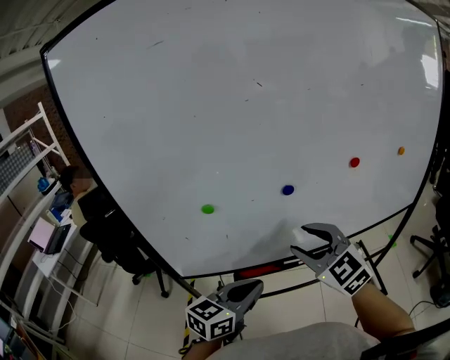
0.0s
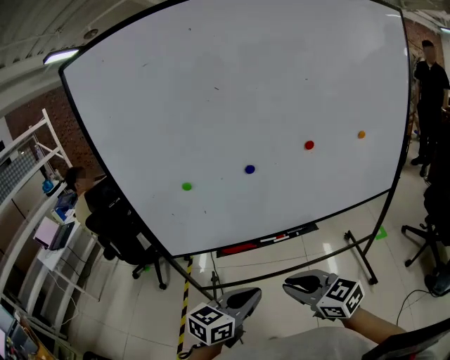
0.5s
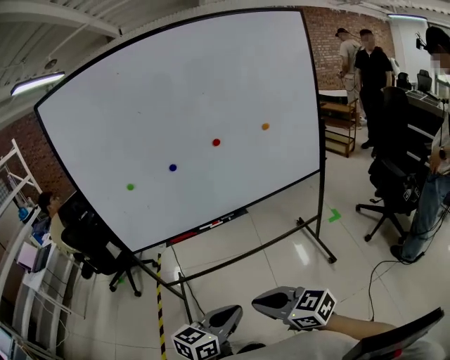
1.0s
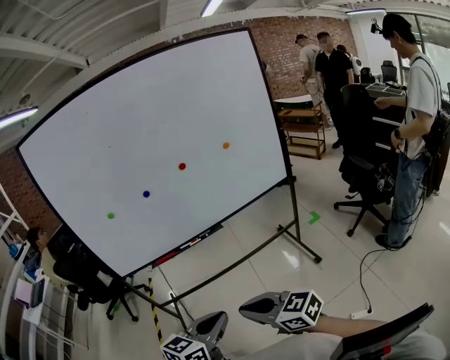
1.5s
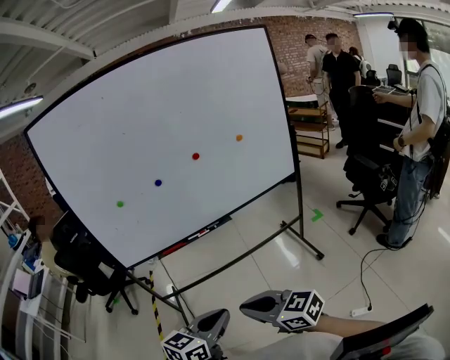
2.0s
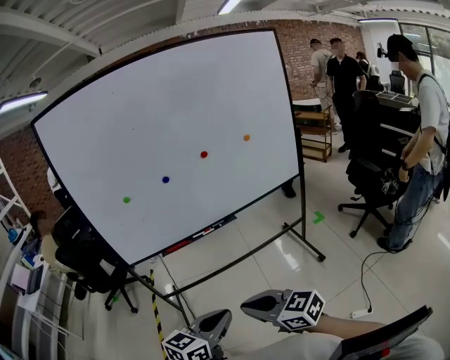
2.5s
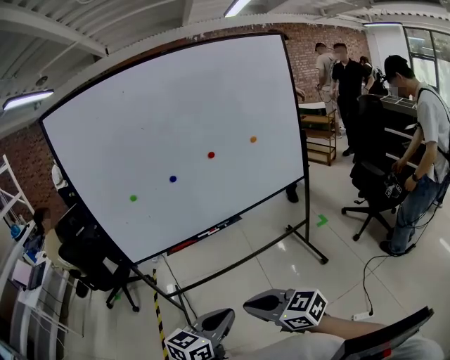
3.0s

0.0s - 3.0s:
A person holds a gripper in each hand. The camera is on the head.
0.0s - 1.5s: Both grippers are carried backward and to the right, some 40 cm. The right gripper turns by about 40 degrees, and closes.
1.5s - 3.0s: Both grippers travel together to the left, some 5 cm.

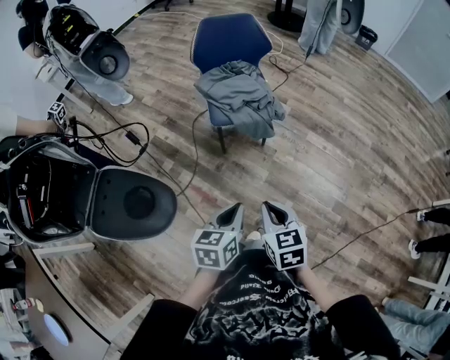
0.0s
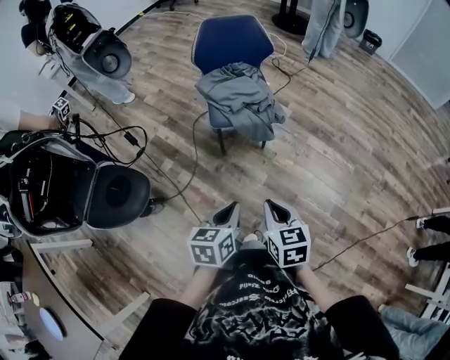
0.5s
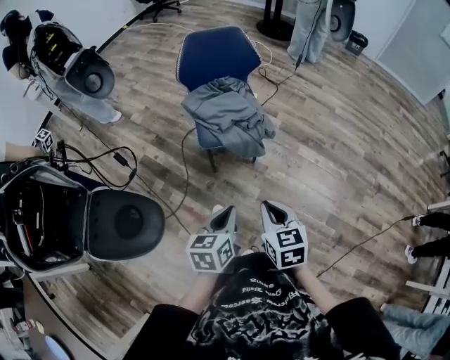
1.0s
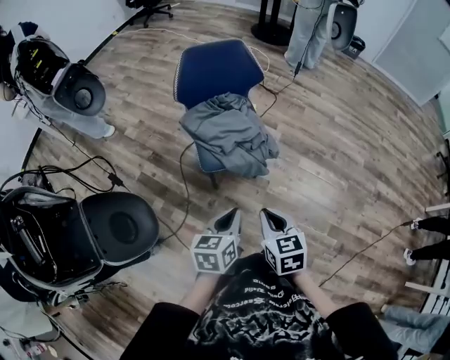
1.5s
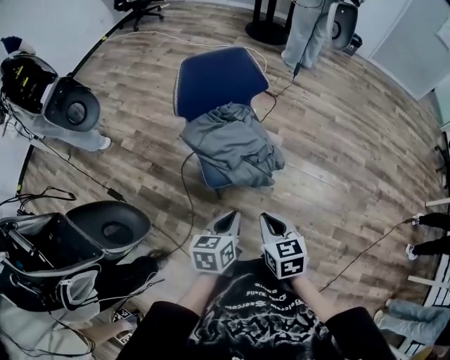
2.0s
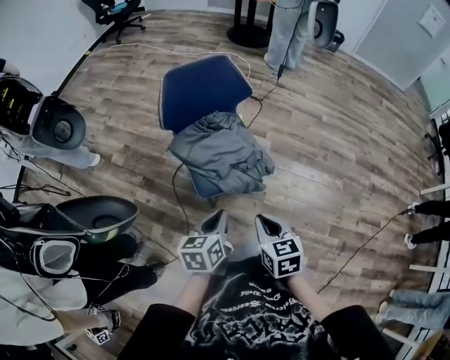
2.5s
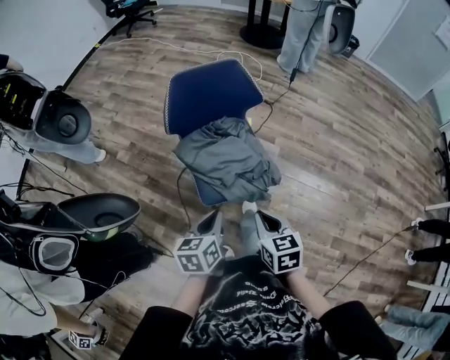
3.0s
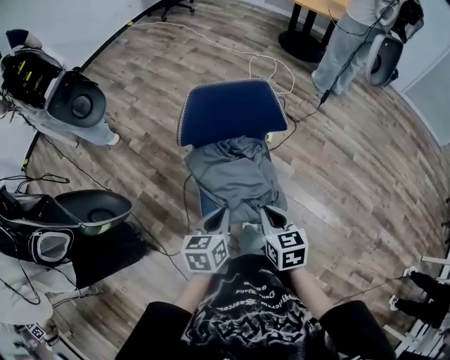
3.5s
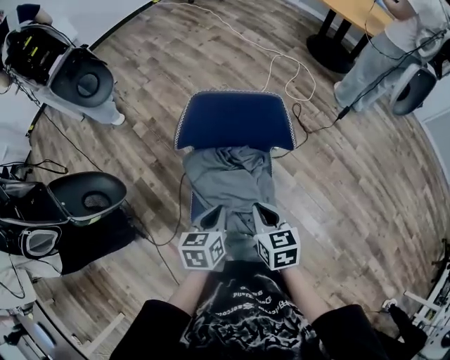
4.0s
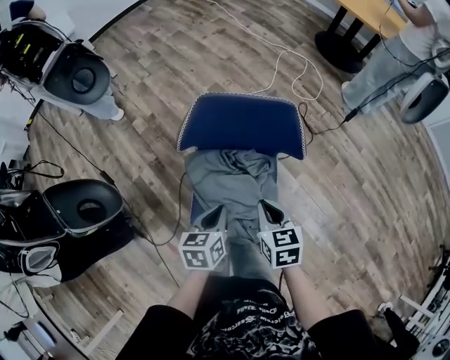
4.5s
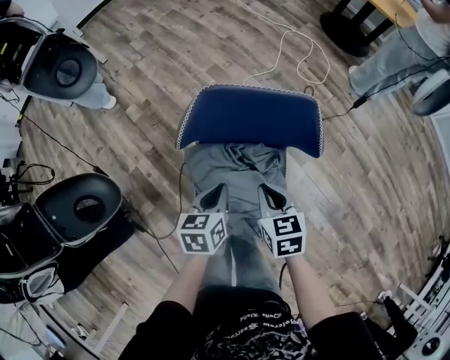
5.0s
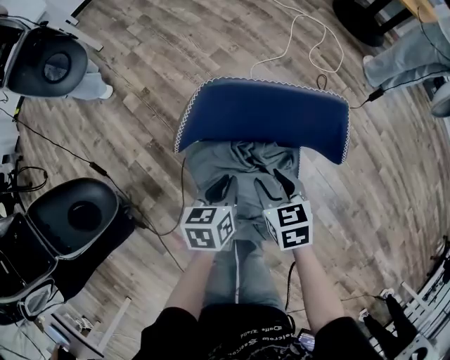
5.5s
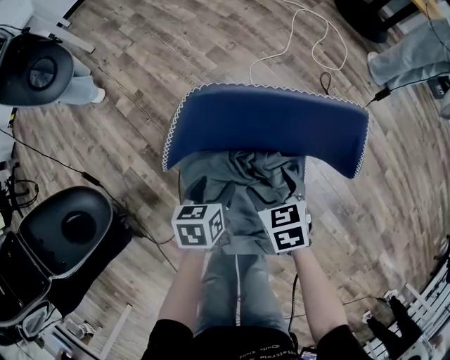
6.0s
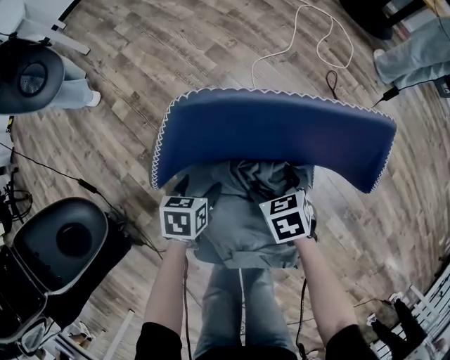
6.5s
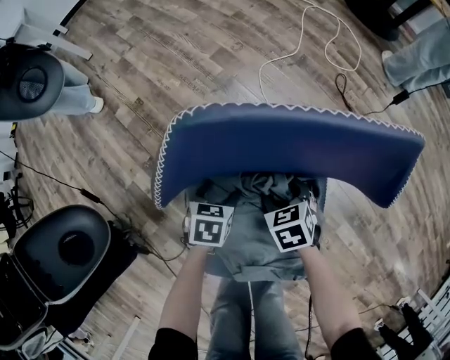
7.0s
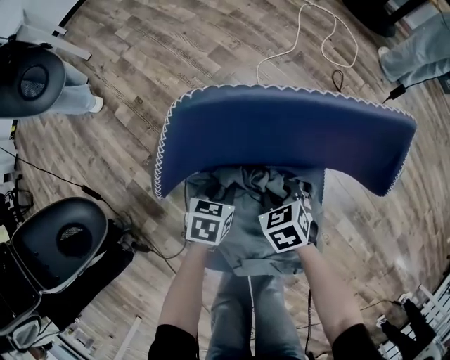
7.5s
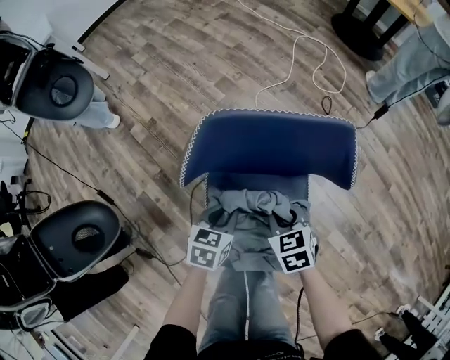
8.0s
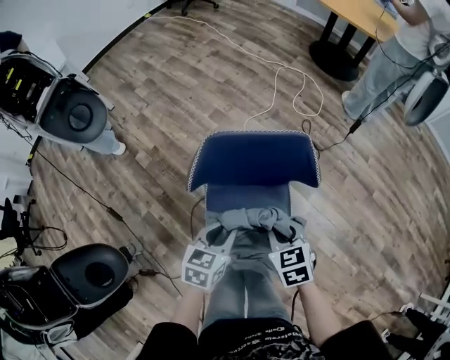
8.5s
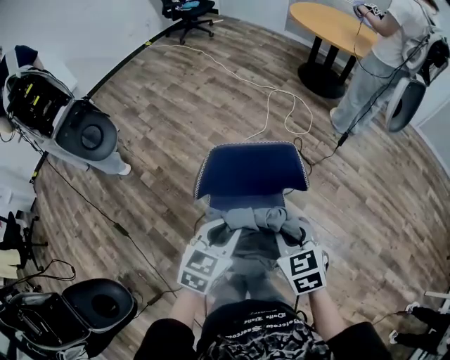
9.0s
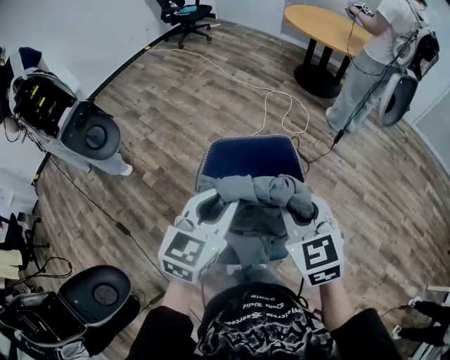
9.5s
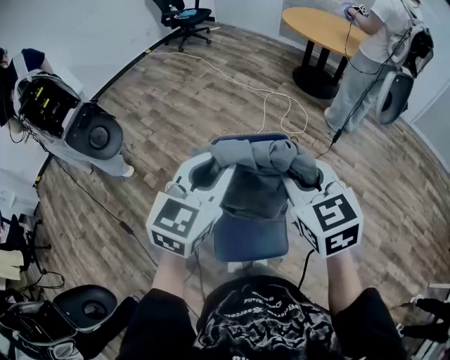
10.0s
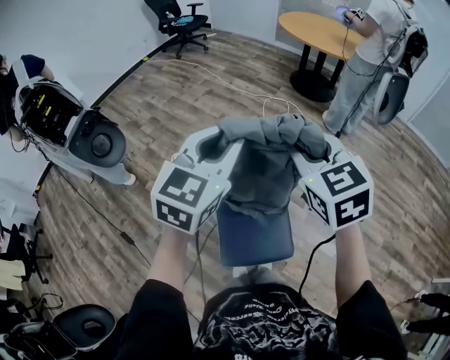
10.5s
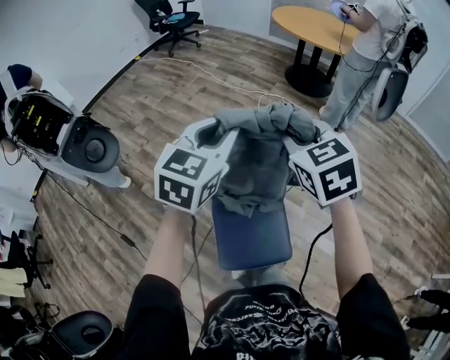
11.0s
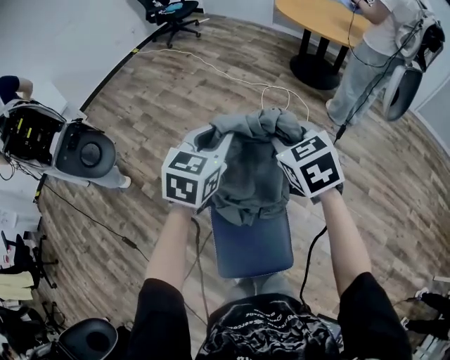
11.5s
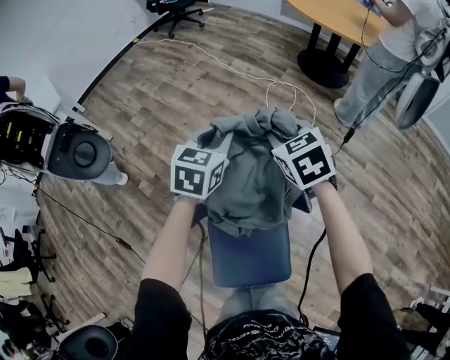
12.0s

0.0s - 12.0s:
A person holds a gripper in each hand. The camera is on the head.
0.0s - 2.0s: Both grippers travel together forward, about 30 cm.
2.0s - 4.0s: The left gripper ends up approximately 30 cm from where it was, and turns by some 30 degrees. The right gripper moves roughly 30 cm, and rotates roughly 20 degrees.
4.0s - 6.0s: The two grippers go some 25 cm downward and forward. The left gripper opens. Meanwhile the right gripper opens its fingers.
6.0s - 8.0s: The right gripper goes downward and returns, some 10 cm each way, and closes its fingers, while the left gripper travels downward and back again, approximately 10 cm each way, turns by some 20 degrees, and closes up.
8.0s - 10.0s: The grippers both shift upward by about 50 cm. The right gripper changes its angle by roughly 30 degrees. Meanwhile the left gripper tips its fingers upward by roughly 40 degrees.
10.0s - 12.0s: Both grippers move forward and downward, approximately 35 cm.

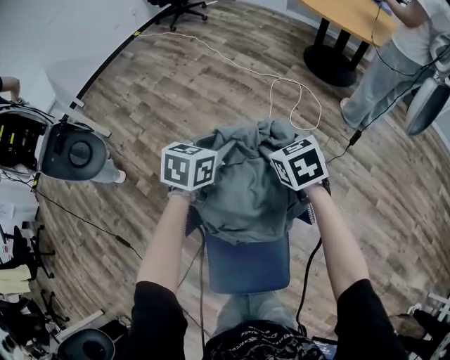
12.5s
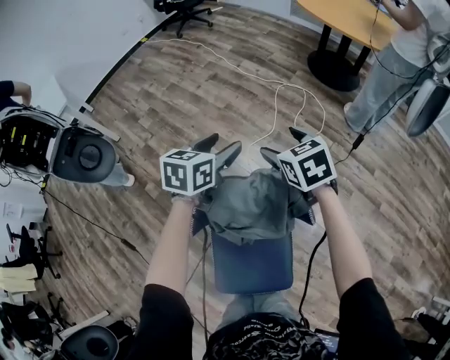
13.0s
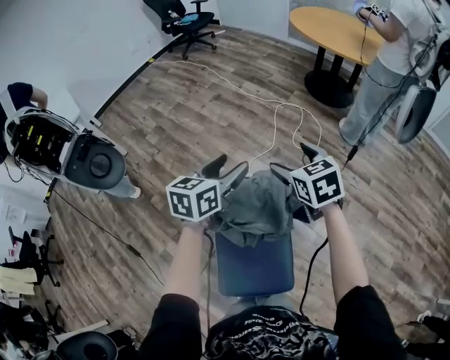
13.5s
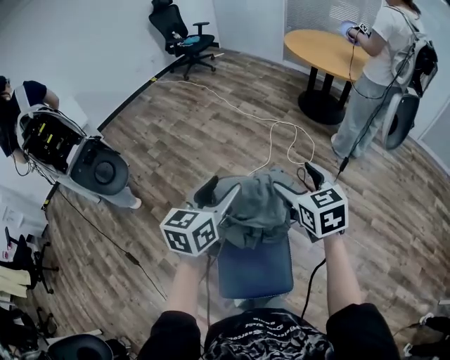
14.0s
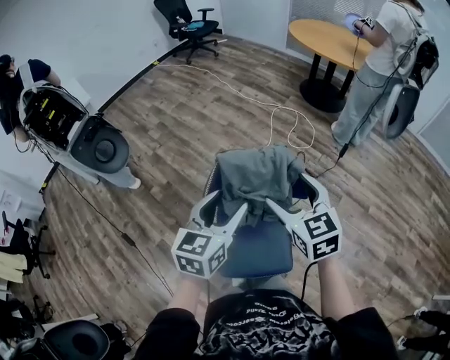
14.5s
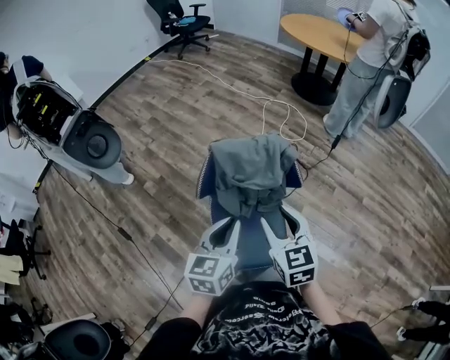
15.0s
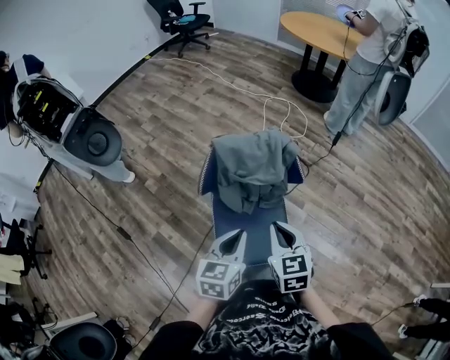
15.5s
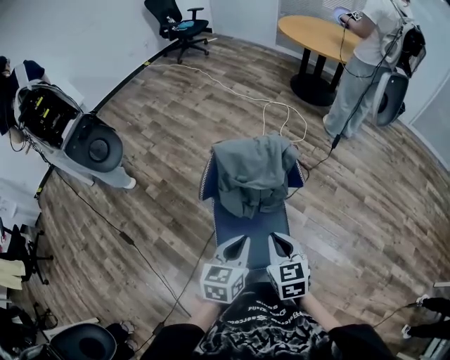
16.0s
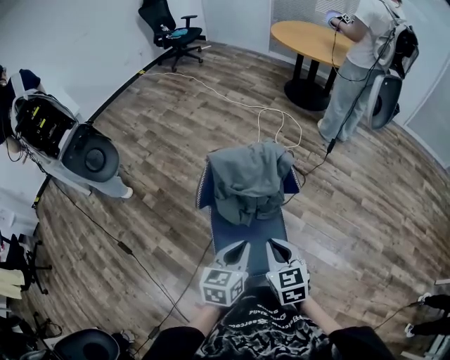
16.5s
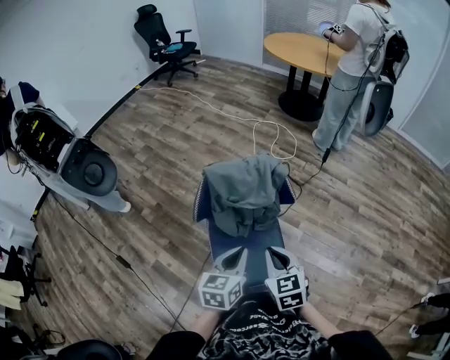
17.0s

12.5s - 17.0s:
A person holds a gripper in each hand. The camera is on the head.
12.5s - 14.5s: Both grippers move backward and upward, approximately 35 cm. The left gripper swivels roughly 20 degrees, and opens up; the right gripper swivels roughly 20 degrees.
14.5s - 17.0s: The right gripper travels backward and downward by about 20 cm, and closes its fingers; the left gripper moves downward, backward and to the right, approximately 15 cm, and closes up.

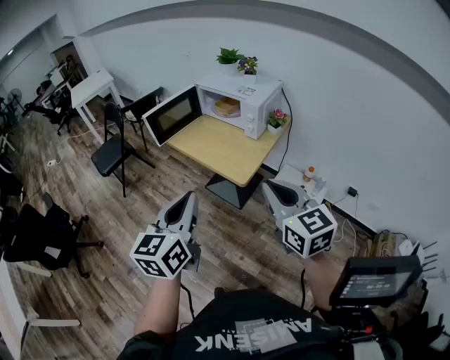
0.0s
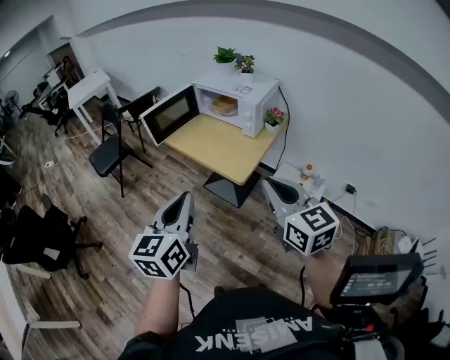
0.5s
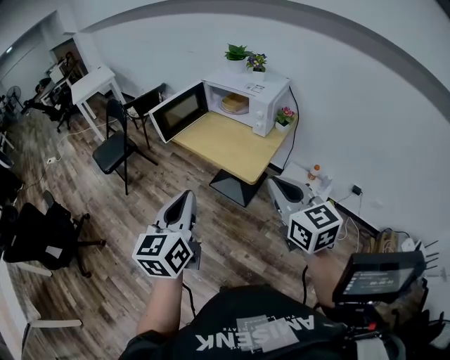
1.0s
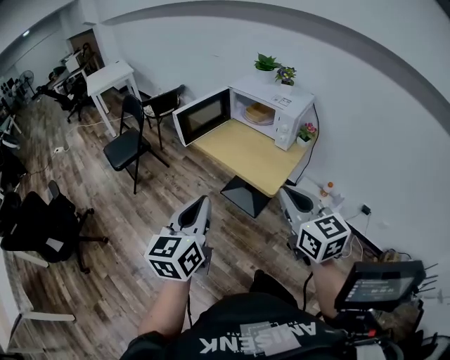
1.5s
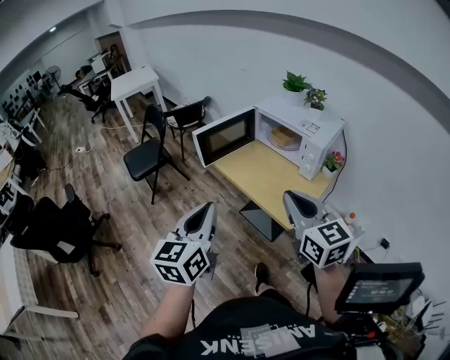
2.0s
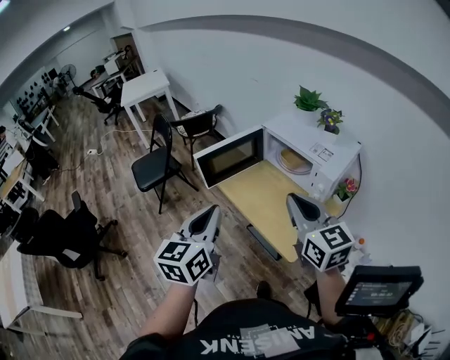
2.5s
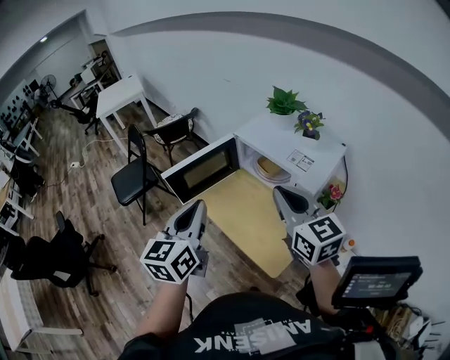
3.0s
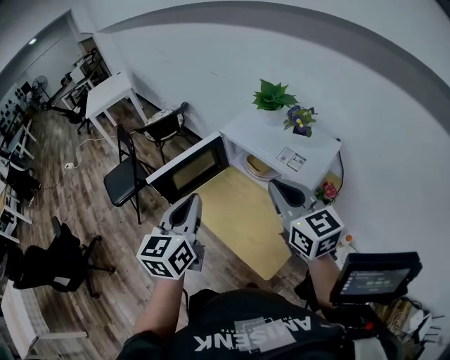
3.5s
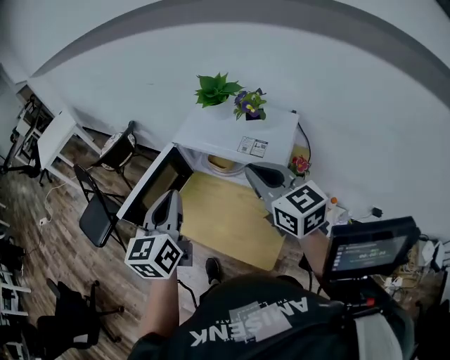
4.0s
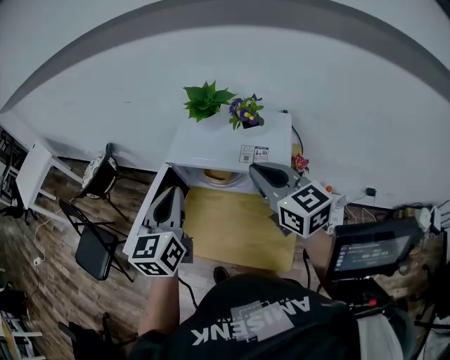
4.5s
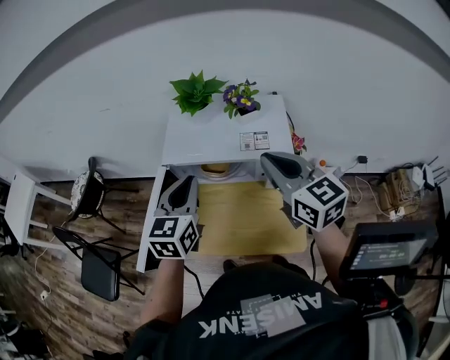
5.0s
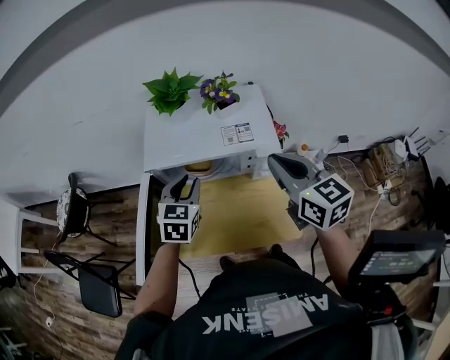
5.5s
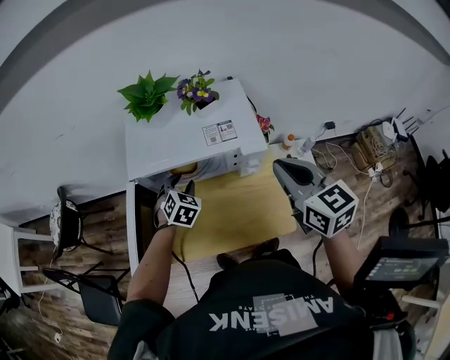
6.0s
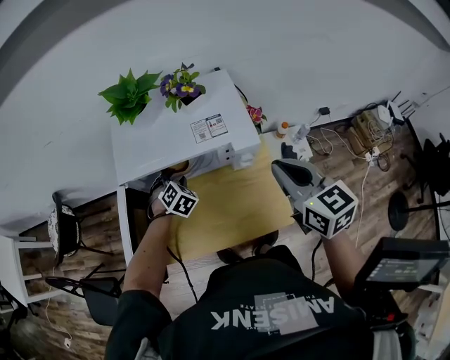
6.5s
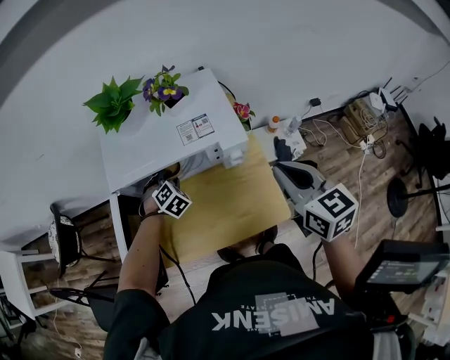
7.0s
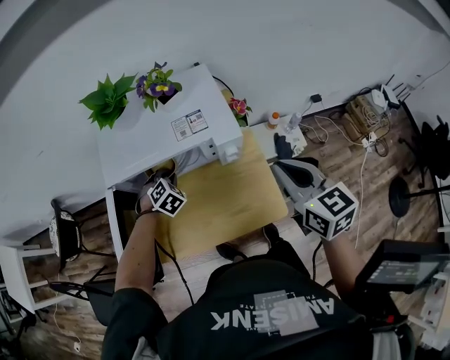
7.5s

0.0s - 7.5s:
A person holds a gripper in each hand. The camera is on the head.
0.0s - 2.0s: Both grippers travel together forward and to the left, approximately 20 cm.
2.0s - 4.0s: The two grippers go some 35 cm forward and to the right.
4.0s - 5.5s: The left gripper moves roughly 25 cm, rotates about 50 degrees, and opens up; the right gripper swivels about 40 degrees.
5.5s - 7.5s: The right gripper goes roughly 10 cm to the right, backward and downward; the left gripper goes approximately 15 cm downward, rolls clockwise, seen from behind, by about 40 degrees, and closes its fingers.
